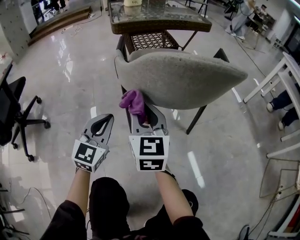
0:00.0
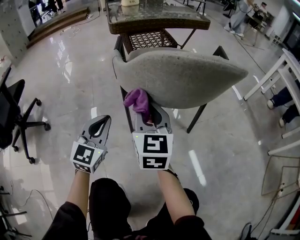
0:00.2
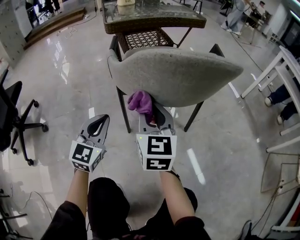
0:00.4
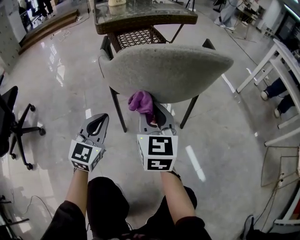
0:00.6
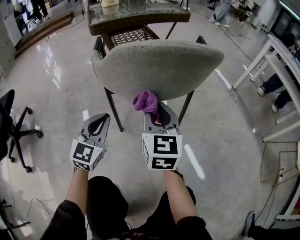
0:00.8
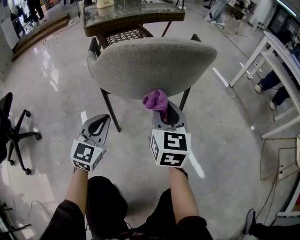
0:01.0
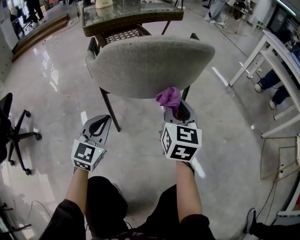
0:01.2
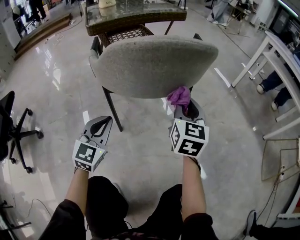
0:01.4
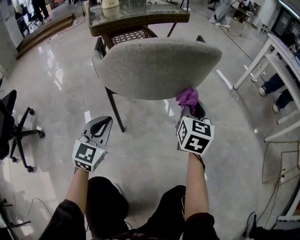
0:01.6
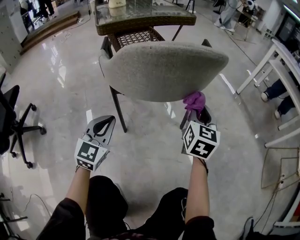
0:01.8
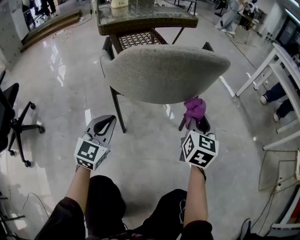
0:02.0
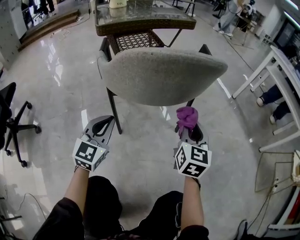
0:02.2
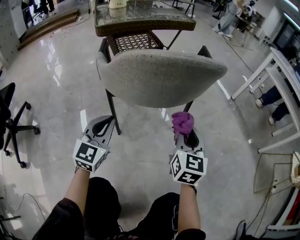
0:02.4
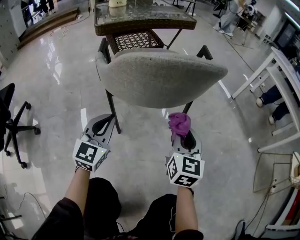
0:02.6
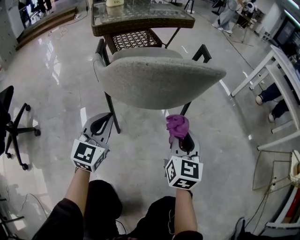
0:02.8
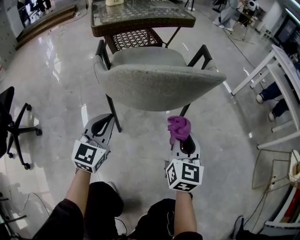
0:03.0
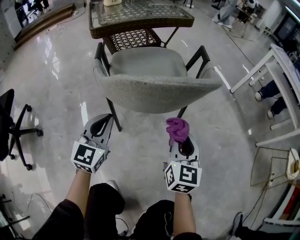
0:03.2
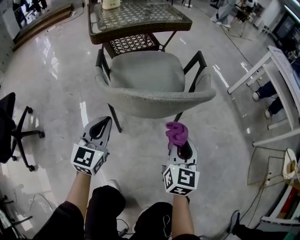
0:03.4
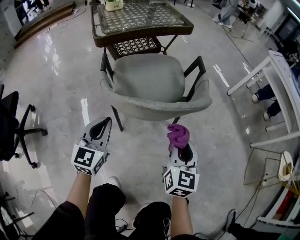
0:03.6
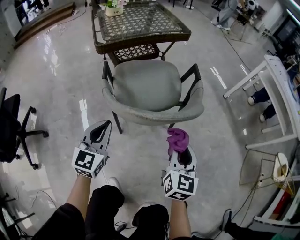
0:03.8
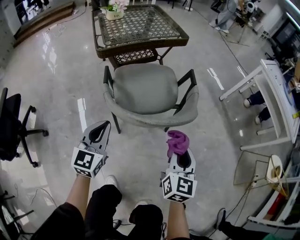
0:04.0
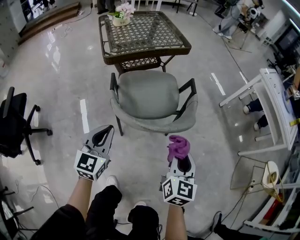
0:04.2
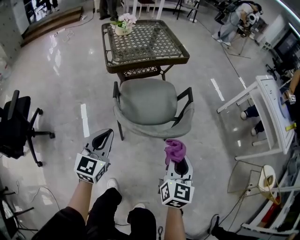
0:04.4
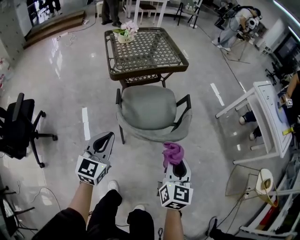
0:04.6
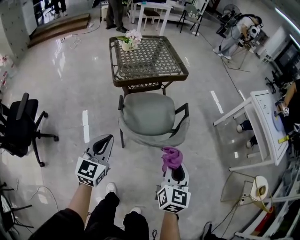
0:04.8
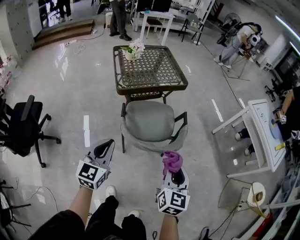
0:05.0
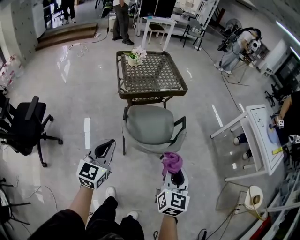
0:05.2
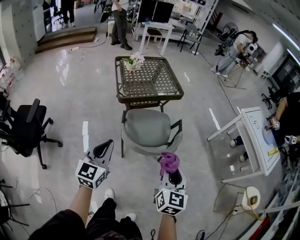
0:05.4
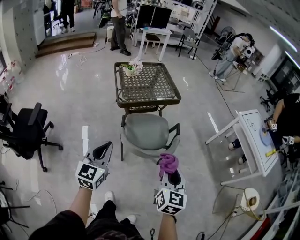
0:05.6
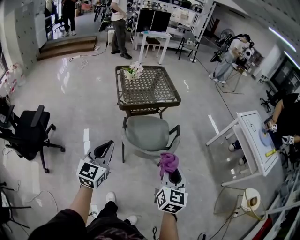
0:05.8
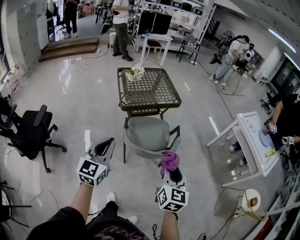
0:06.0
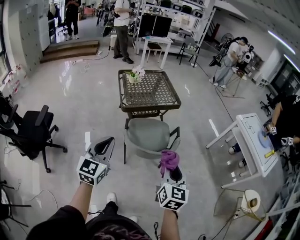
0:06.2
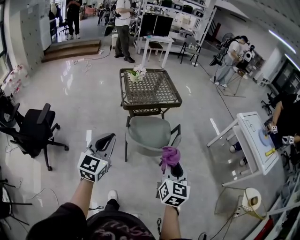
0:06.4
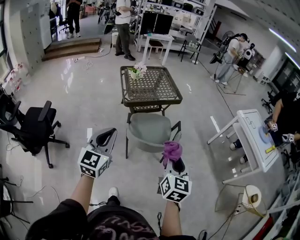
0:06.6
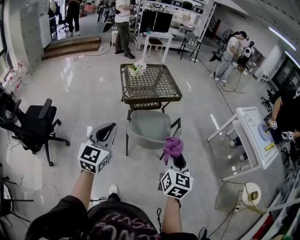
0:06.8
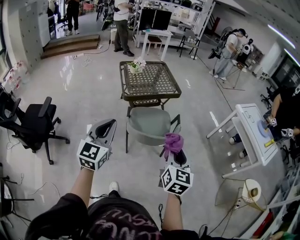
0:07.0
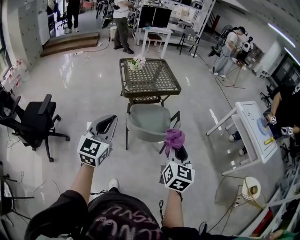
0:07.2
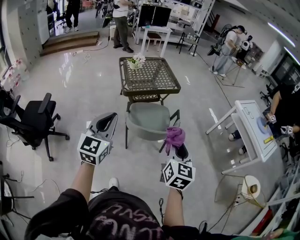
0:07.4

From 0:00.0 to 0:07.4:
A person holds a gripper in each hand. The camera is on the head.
From 0:00.0 to 0:01.4: The left gripper is displaced to the right by approximately 5 cm, while the right gripper travels to the right by approximately 25 cm, and rotates roughly 30 degrees.
From 0:01.4 to 0:03.0: The left gripper goes roughly 5 cm upward. The right gripper is displaced backward by about 5 cm.
From 0:03.0 to 0:04.4: The two grippers go approximately 25 cm upward.
From 0:04.4 to 0:06.0: The grippers both shift upward by about 30 cm.
From 0:06.0 to 0:07.4: The left gripper is displaced upward and backward by approximately 10 cm. The right gripper moves some 5 cm.

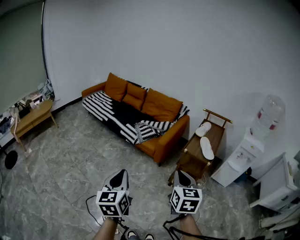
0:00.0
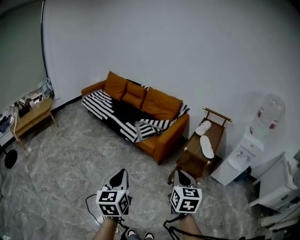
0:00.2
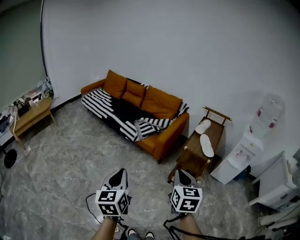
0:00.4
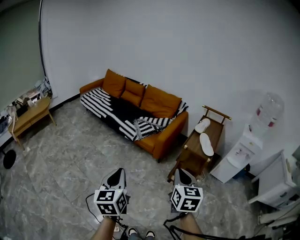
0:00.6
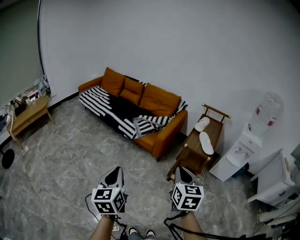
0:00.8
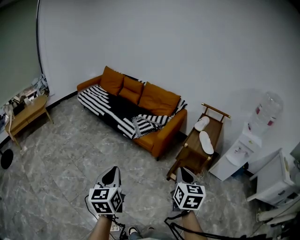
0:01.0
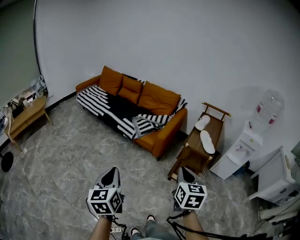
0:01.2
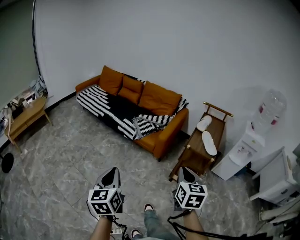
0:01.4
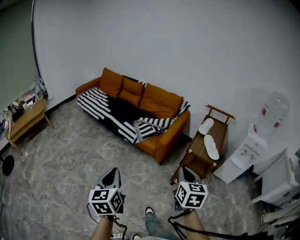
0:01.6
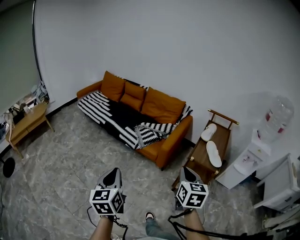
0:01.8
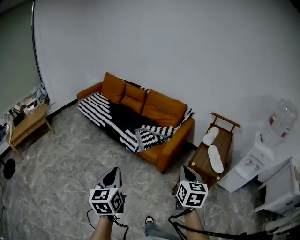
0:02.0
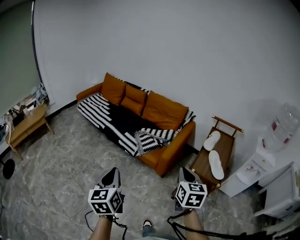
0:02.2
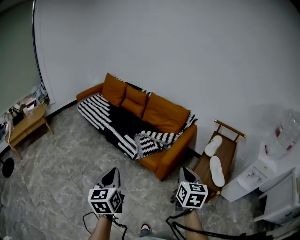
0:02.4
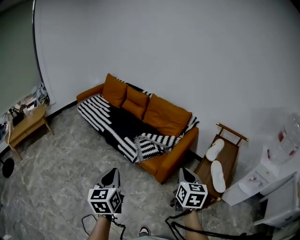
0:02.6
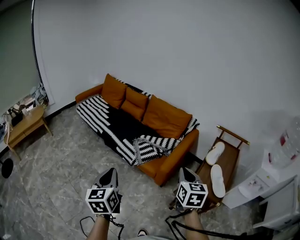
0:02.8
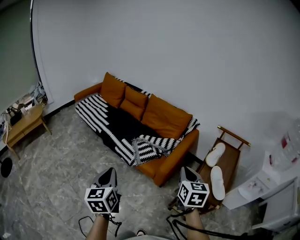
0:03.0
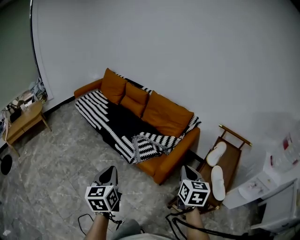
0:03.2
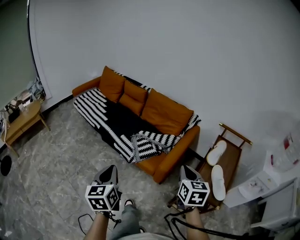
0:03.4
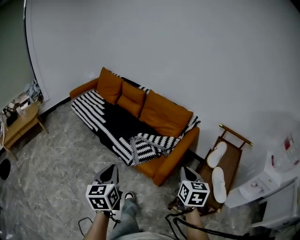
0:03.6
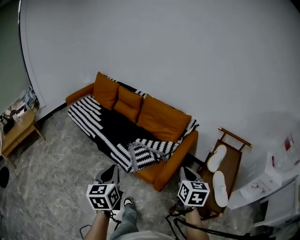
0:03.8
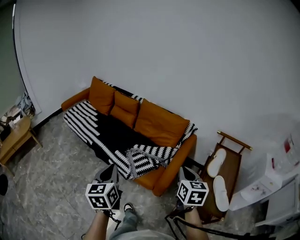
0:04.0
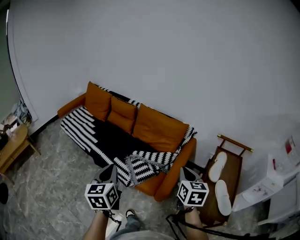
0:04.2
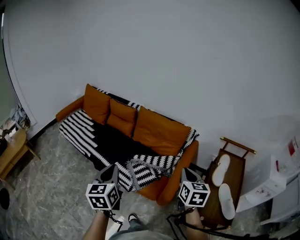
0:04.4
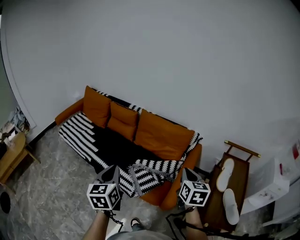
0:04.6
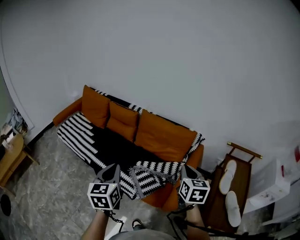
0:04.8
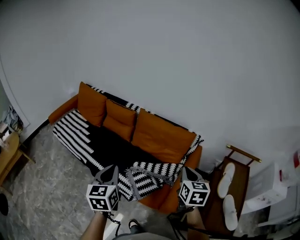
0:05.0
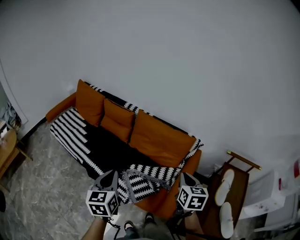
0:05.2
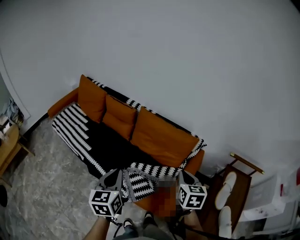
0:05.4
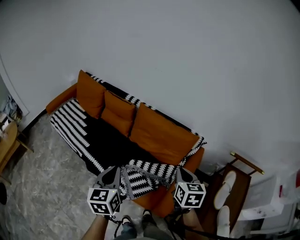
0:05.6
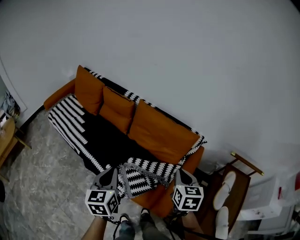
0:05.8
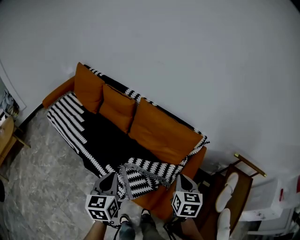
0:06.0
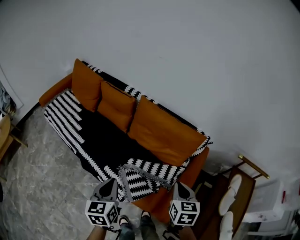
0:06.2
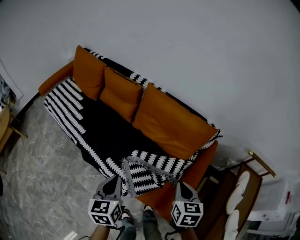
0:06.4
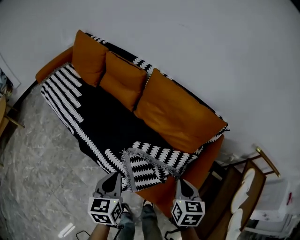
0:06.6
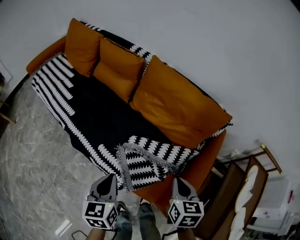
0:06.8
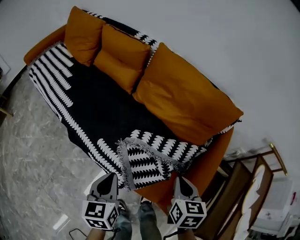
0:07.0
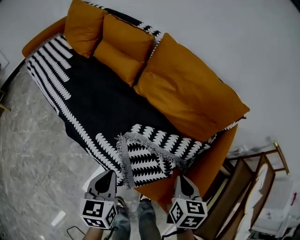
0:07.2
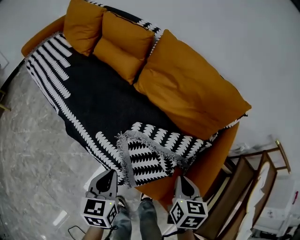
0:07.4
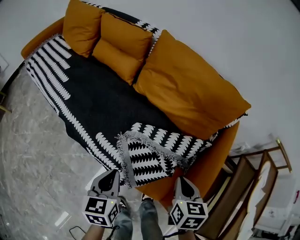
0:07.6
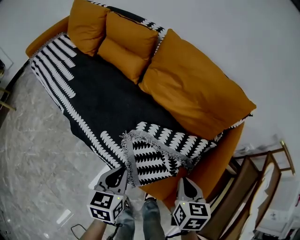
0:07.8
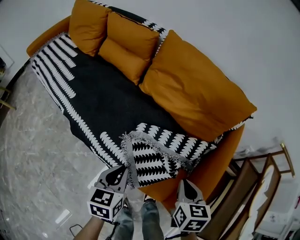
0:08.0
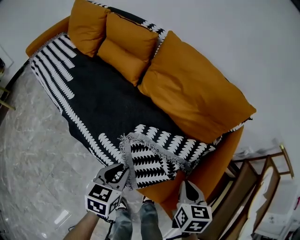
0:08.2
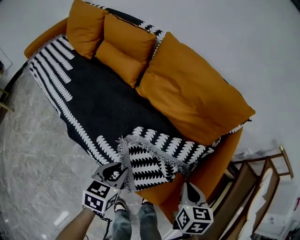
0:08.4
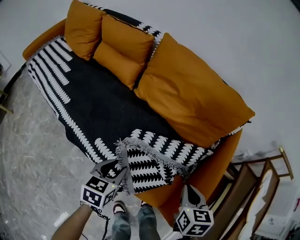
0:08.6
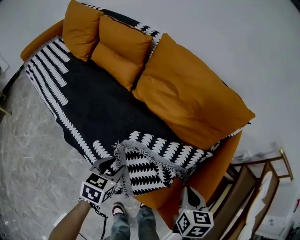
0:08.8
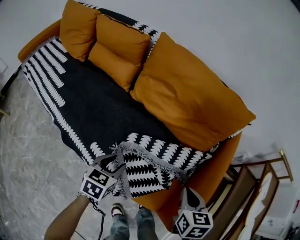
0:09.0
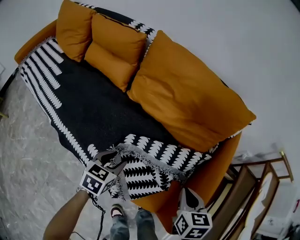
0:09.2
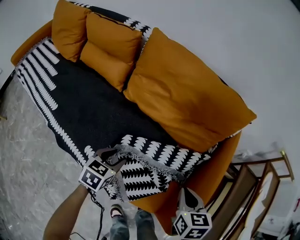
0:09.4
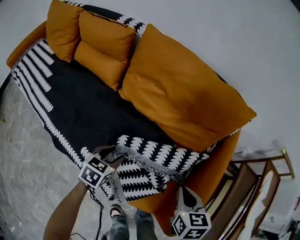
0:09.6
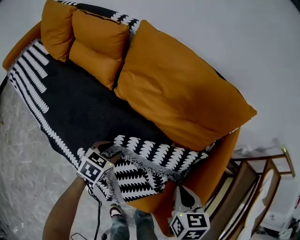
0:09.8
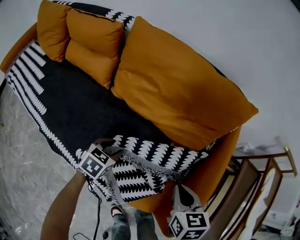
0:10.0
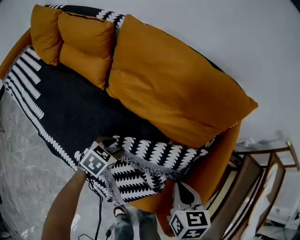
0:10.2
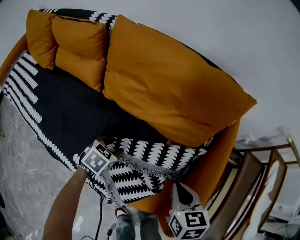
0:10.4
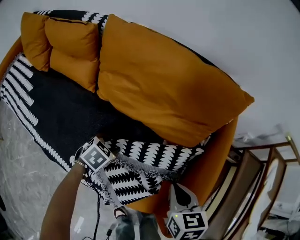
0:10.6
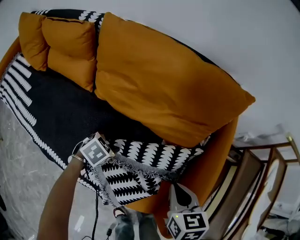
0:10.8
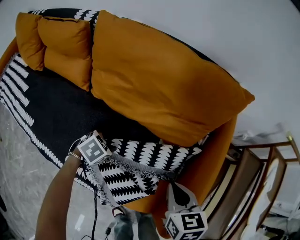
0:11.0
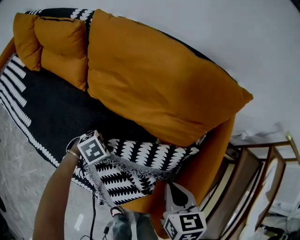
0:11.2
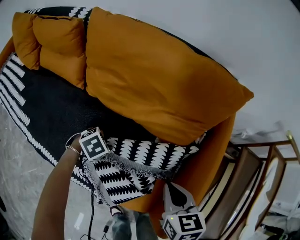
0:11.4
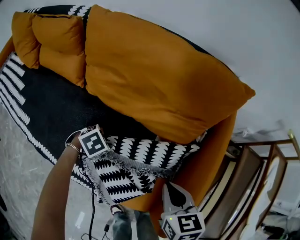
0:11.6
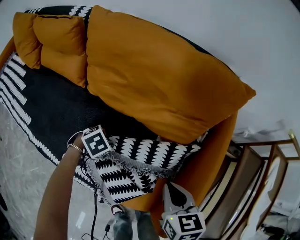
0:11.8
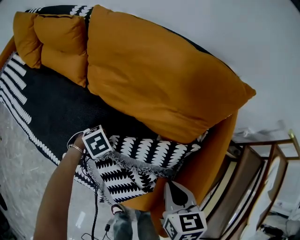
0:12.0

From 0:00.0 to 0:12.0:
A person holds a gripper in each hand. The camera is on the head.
From 0:00.0 to 0:01.6: The right gripper heads forward, covering roughly 10 cm. The left gripper goes approximately 10 cm forward and to the left.
From 0:01.6 to 0:03.0: The two grippers go some 30 cm forward.
From 0:03.0 to 0:04.4: Both grippers move forward, about 25 cm.
From 0:04.4 to 0:06.0: Both grippers travel together forward and downward, approximately 25 cm.
From 0:06.0 to 0:07.6: The grippers both shift downward by approximately 30 cm.
From 0:07.6 to 0:09.0: The left gripper is displaced forward and downward by approximately 15 cm, rotates some 30 degrees, and opens its fingers. Meanwhile the right gripper ends up roughly 5 cm from where it was.
From 0:09.0 to 0:10.4: The right gripper changes place by some 5 cm. Meanwhile the left gripper is displaced forward and downward by some 15 cm, and changes its angle by some 30 degrees.
From 0:10.4 to 0:12.0: The left gripper rotates some 30 degrees, and closes its fingers.

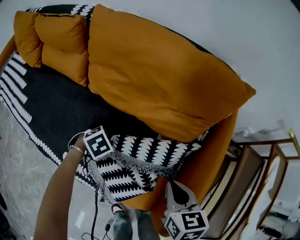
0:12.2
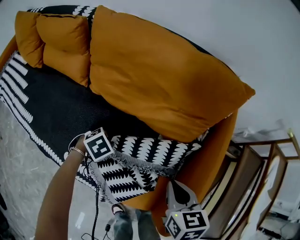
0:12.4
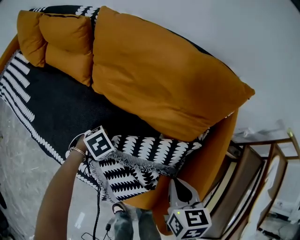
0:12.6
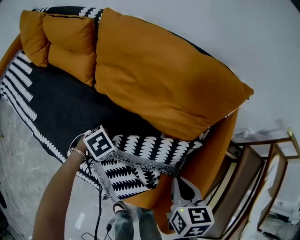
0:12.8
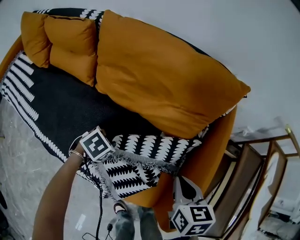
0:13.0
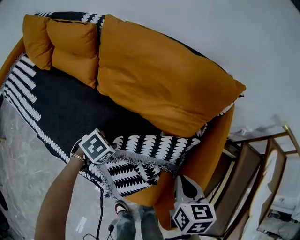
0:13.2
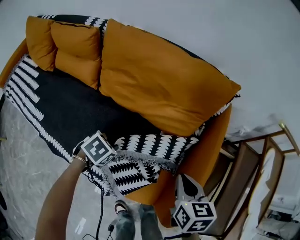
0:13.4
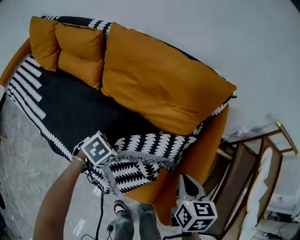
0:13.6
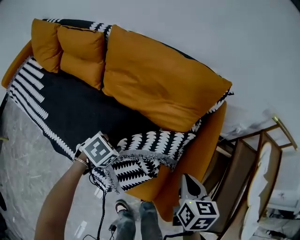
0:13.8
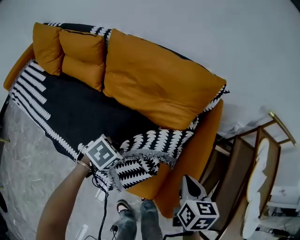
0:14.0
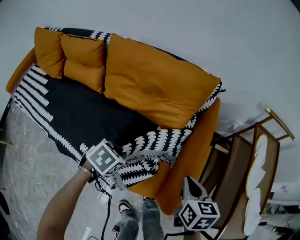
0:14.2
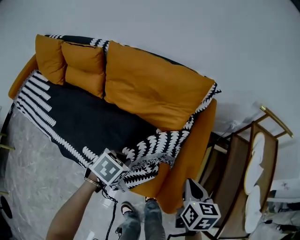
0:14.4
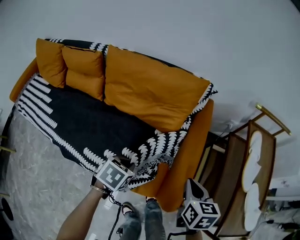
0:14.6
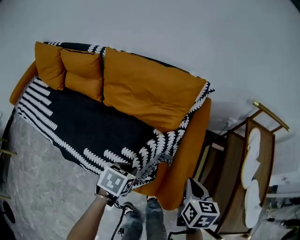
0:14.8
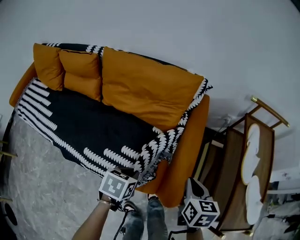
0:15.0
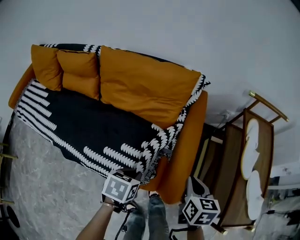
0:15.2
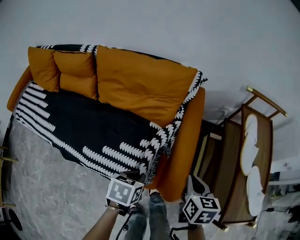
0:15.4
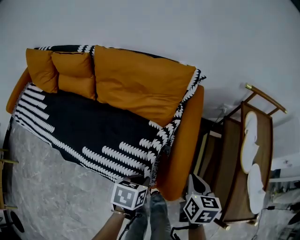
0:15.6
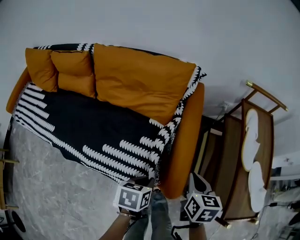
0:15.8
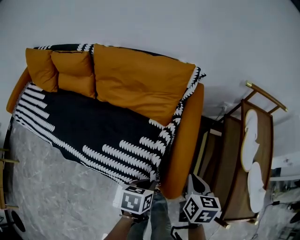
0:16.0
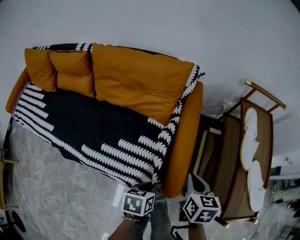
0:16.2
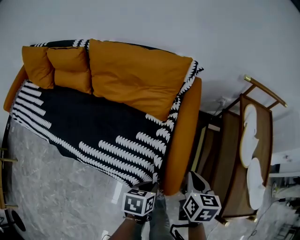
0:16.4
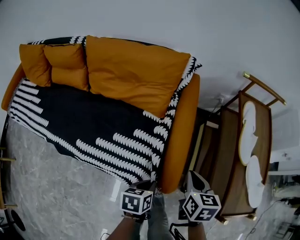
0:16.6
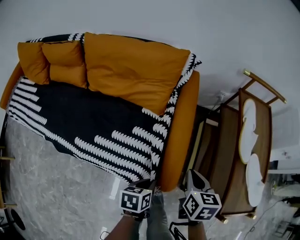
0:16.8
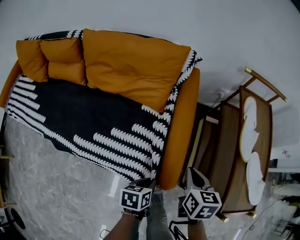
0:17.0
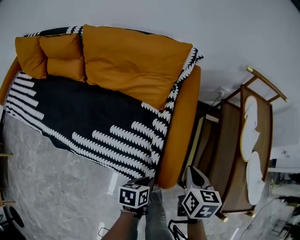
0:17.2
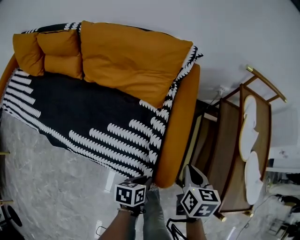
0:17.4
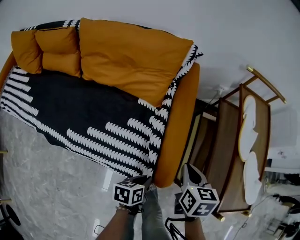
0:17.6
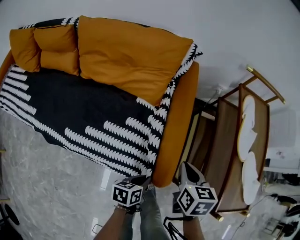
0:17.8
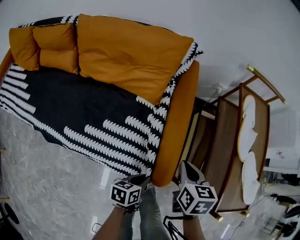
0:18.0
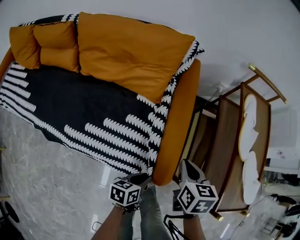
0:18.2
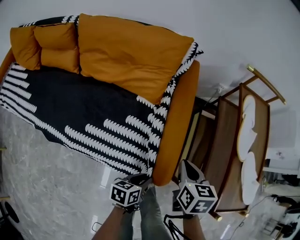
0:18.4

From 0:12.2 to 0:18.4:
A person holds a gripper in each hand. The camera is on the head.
From 0:12.2 to 0:13.8: The left gripper goes some 10 cm upward. Meanwhile the right gripper shifts by approximately 10 cm.
From 0:13.8 to 0:15.4: The right gripper heads to the right and backward, covering about 15 cm. Meanwhile the left gripper is displaced to the right, backward and upward by roughly 25 cm, and swivels roughly 20 degrees.
From 0:15.4 to 0:16.8: The left gripper travels to the right and downward by about 10 cm.
From 0:16.8 to 0:18.4: The left gripper shifts by about 5 cm.
